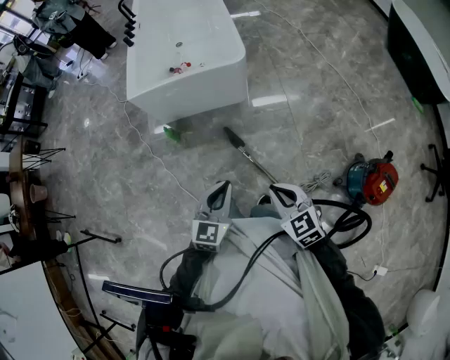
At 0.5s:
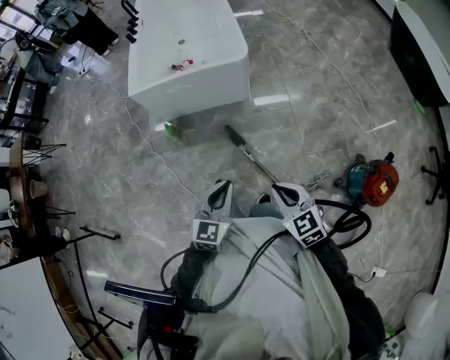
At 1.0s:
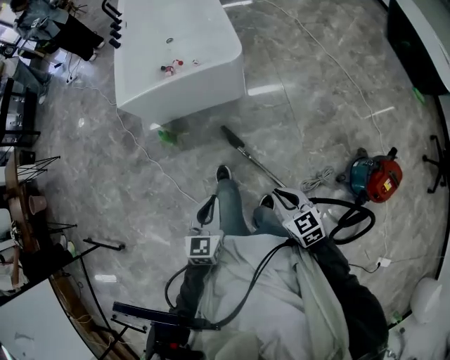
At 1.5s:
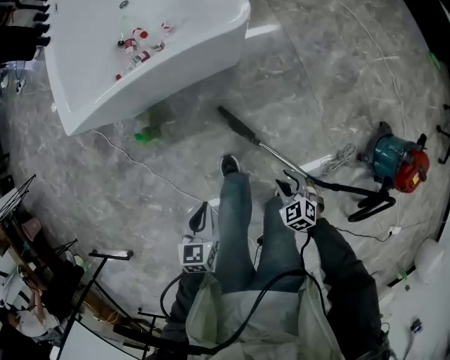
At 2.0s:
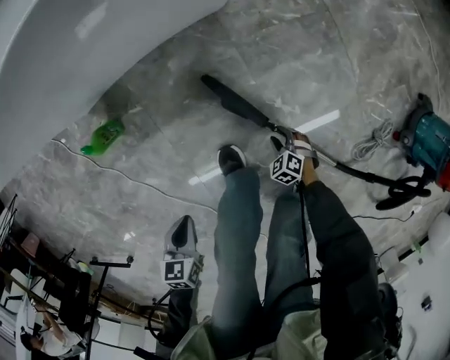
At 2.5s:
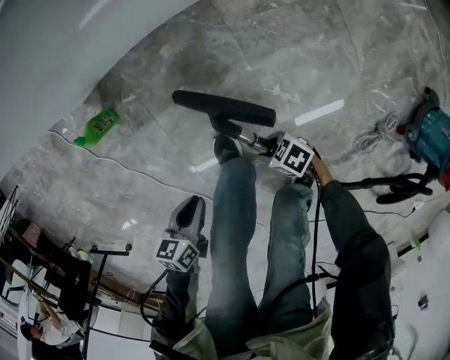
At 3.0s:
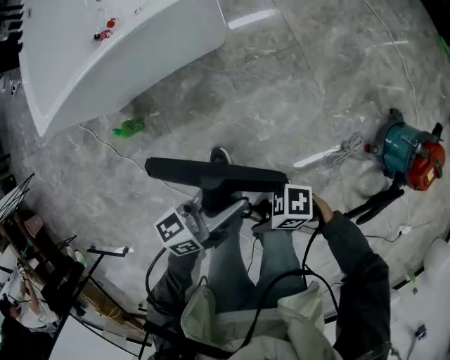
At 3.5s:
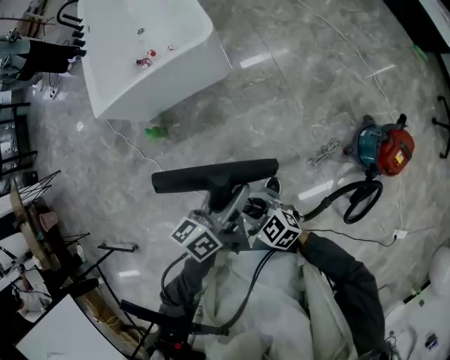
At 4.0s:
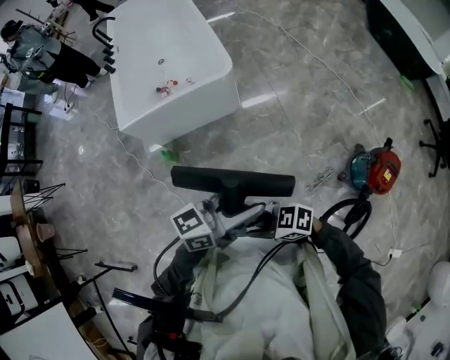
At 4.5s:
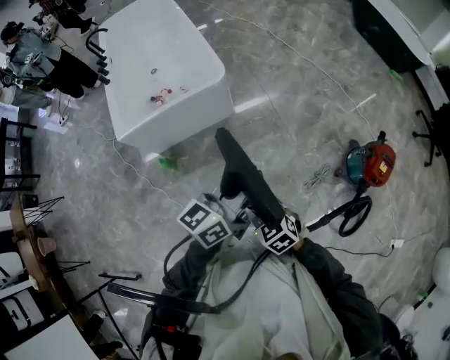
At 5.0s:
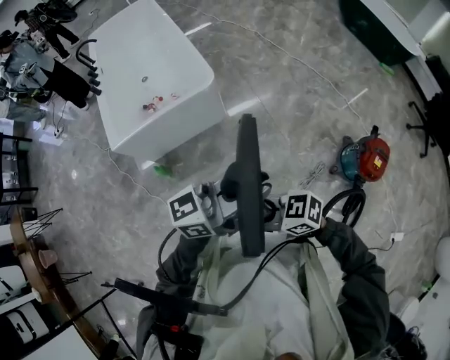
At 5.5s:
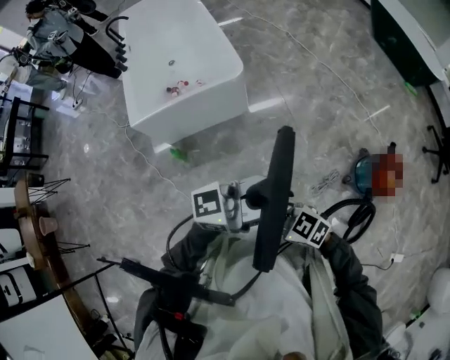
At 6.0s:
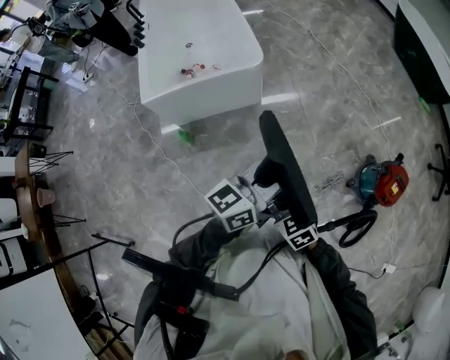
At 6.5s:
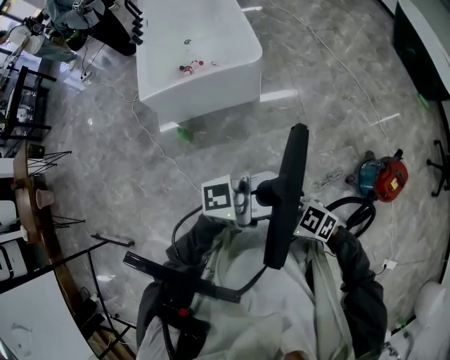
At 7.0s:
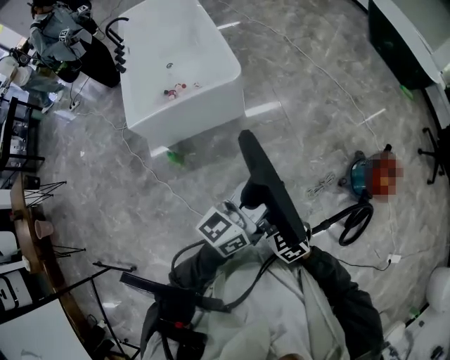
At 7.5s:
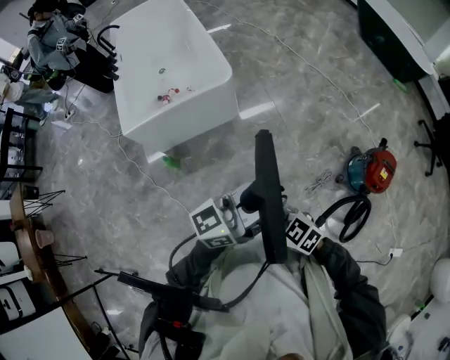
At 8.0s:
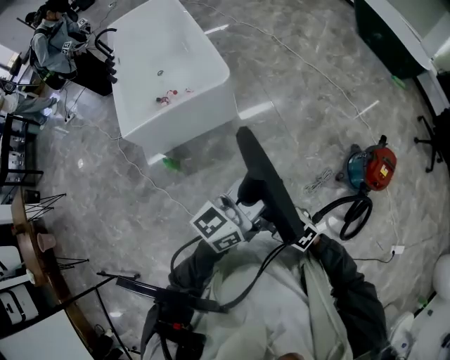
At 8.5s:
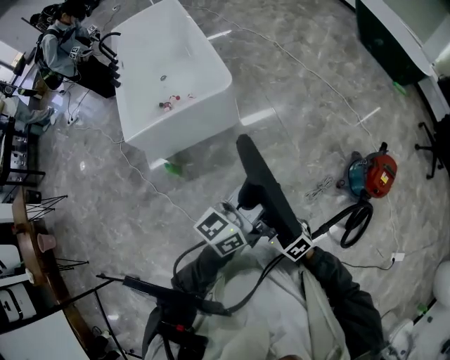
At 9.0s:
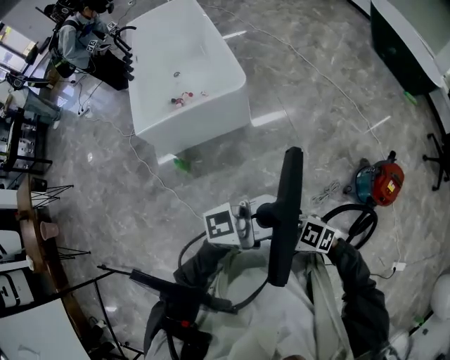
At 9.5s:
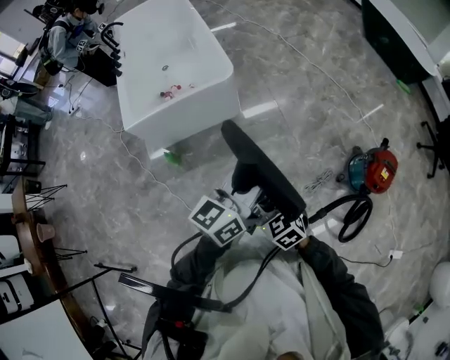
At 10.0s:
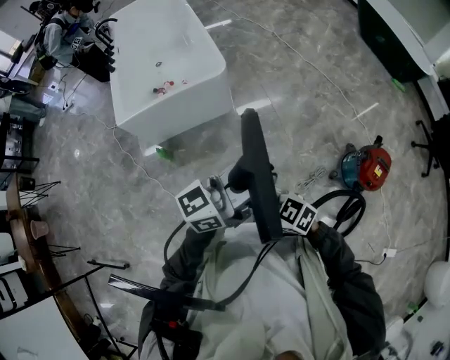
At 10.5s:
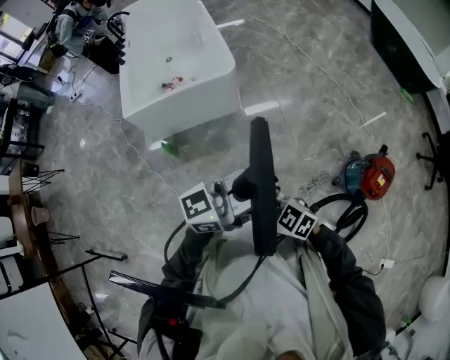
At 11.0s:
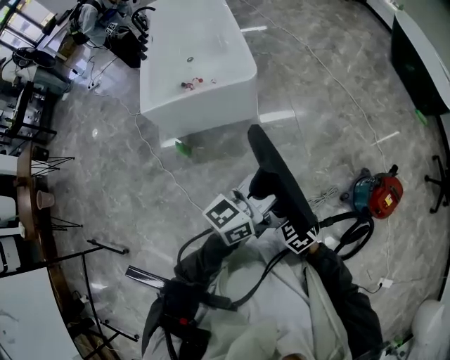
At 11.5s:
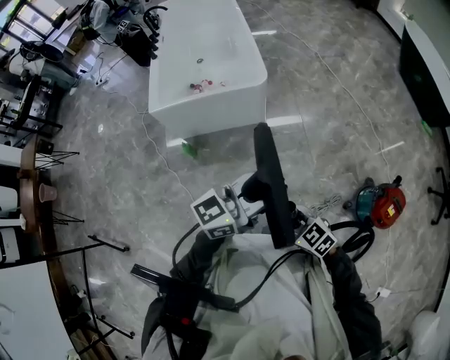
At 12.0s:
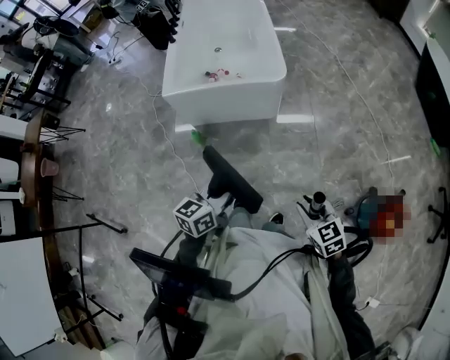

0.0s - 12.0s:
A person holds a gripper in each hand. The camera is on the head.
0.0s - 2.0s: Both grippers travel together downward, some 70 cm. The right gripper points its fingers about 40 degrees further downward, and opens. The left gripper tips its fingers downward by approximately 40 degrees.
2.0s - 4.0s: The two grippers go about 70 cm upward. The right gripper points its fingers approximately 50 degrees further upward. The left gripper tips its fingers upward by about 60 degrees, and opens its fingers.
4.0s - 6.0s: The right gripper moves some 10 cm, and turns by about 50 degrees; the left gripper closes up.
10.0s - 12.0s: The left gripper ends up some 25 cm from where it was, and points its fingers approximately 30 degrees further downward. The right gripper moves approximately 10 cm, and rotates about 20 degrees.

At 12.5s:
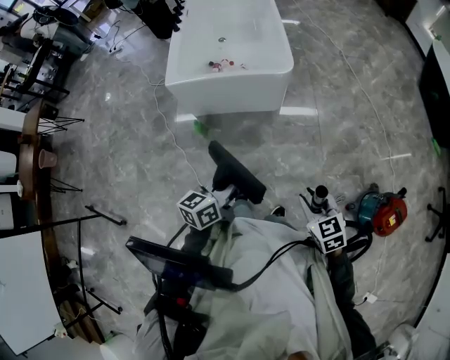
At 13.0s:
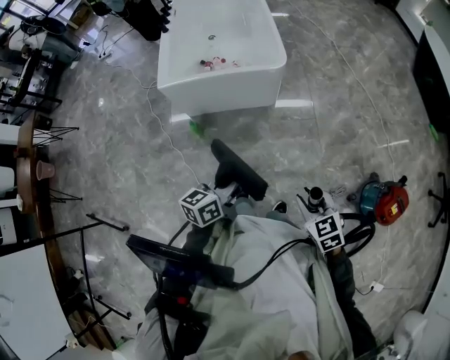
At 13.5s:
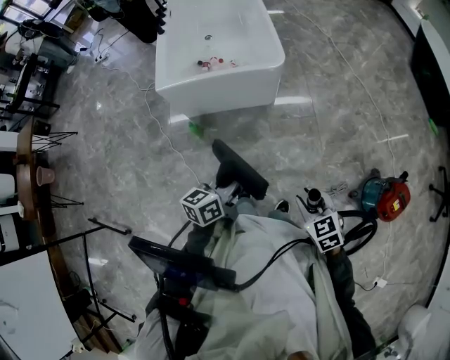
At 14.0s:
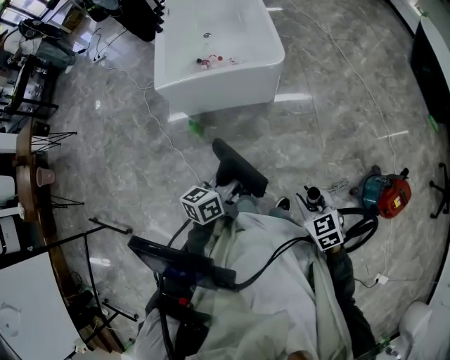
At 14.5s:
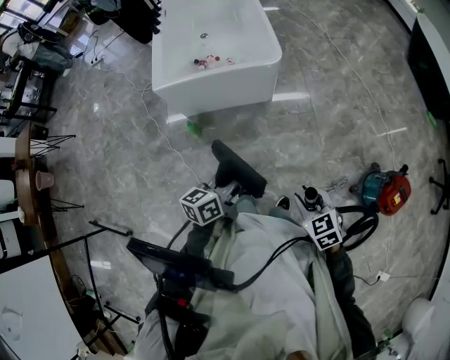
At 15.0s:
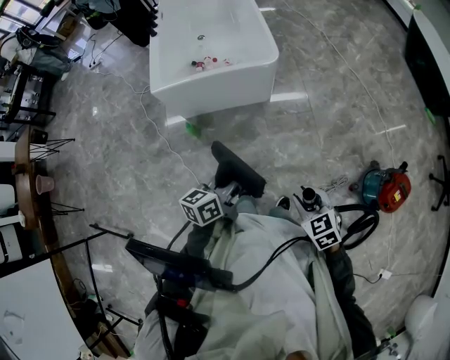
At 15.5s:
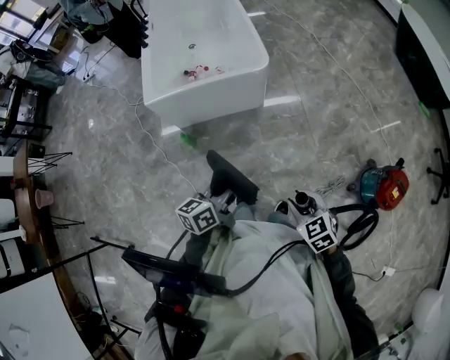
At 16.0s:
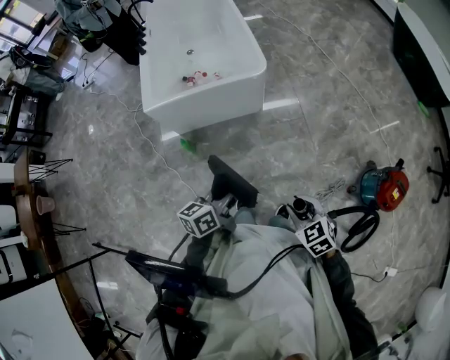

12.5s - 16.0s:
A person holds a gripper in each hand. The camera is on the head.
12.5s - 14.5s: There are only small adjustments of the grippers.
14.5s - 16.0s: Both grippers stay put.

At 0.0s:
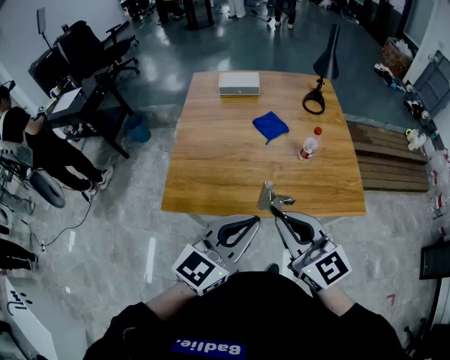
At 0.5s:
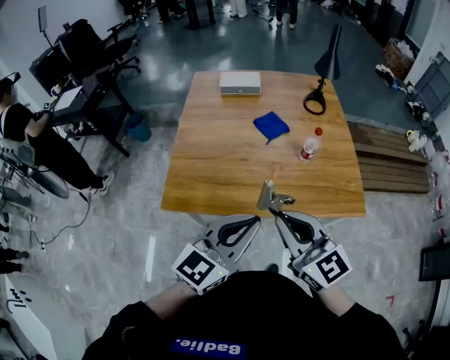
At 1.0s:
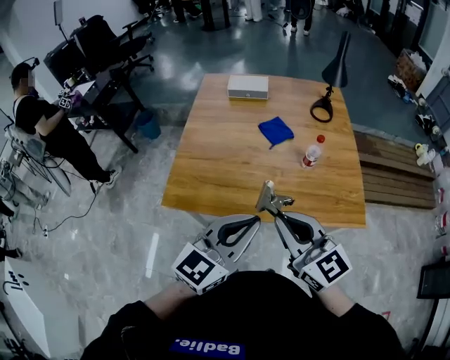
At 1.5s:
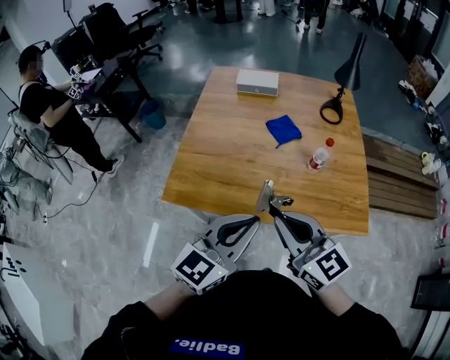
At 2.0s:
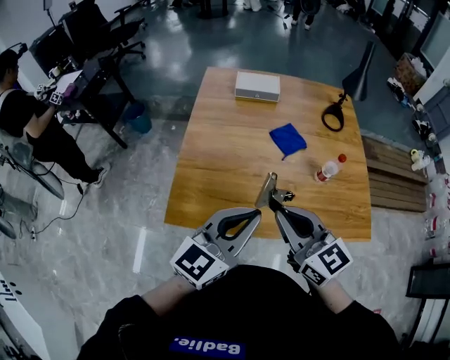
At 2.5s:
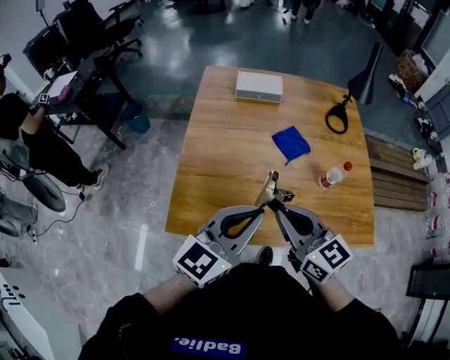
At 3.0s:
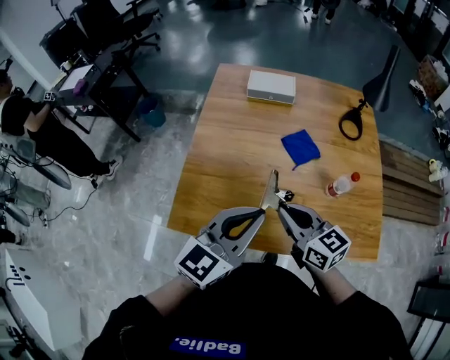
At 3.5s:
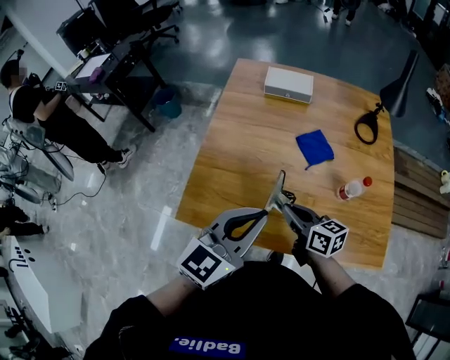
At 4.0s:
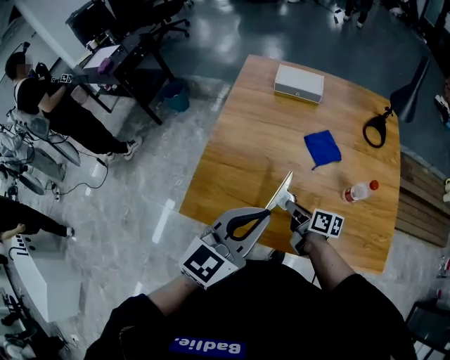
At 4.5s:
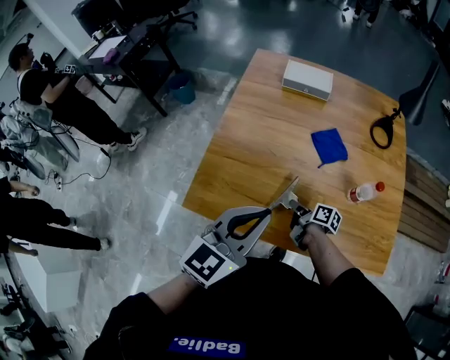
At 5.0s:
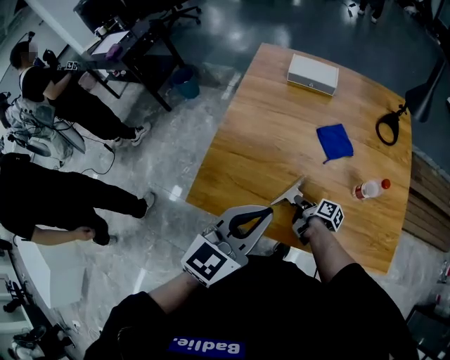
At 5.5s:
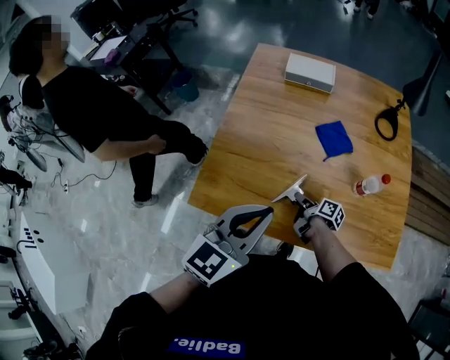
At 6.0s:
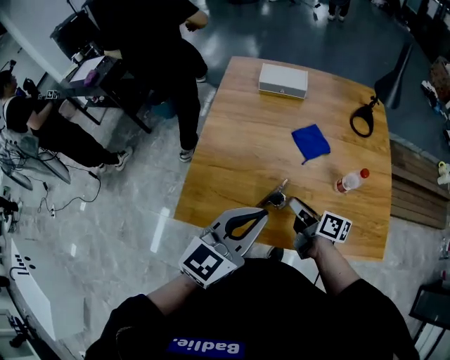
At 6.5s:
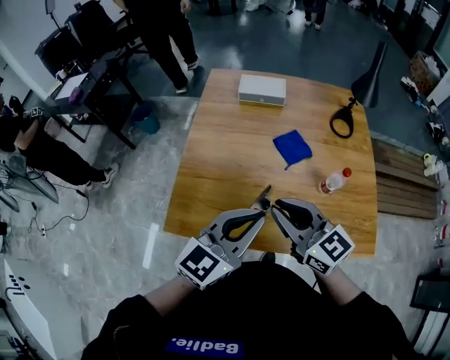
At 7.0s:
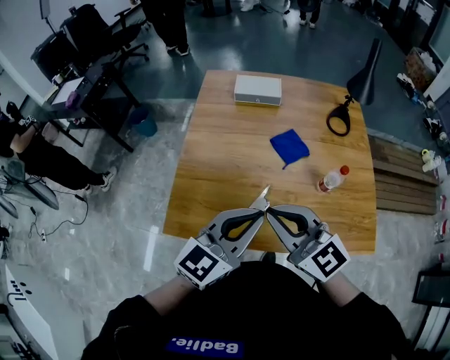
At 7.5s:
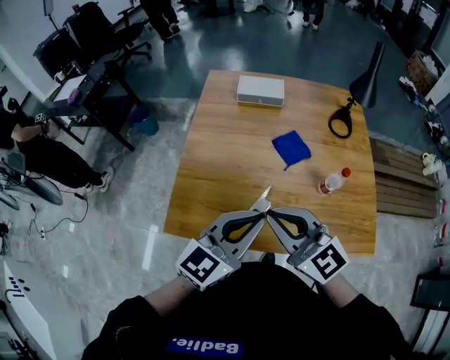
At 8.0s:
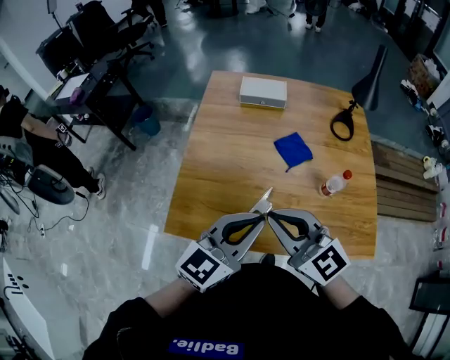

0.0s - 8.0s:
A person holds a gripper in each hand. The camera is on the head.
0.0s - 2.0s: Both grippers move forward and to the left, about 15 cm.
2.0s - 4.0s: The right gripper travels downward and forward by approximately 30 cm, and twists approximately 60 degrees clockwise, seen from behind; the left gripper moves forward, approximately 5 cm.
4.0s - 6.0s: The right gripper travels upward by some 5 cm, and opens up.
6.0s - 8.0s: The right gripper is displaced upward by about 20 cm, rolls counterclockwise, seen from behind, by about 70 degrees, and closes up.

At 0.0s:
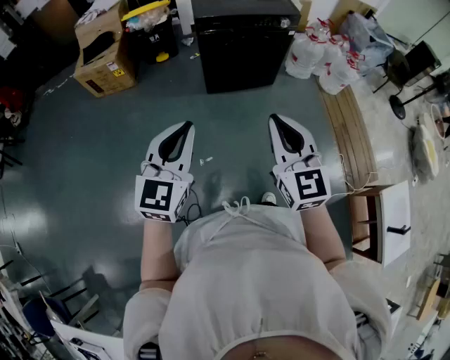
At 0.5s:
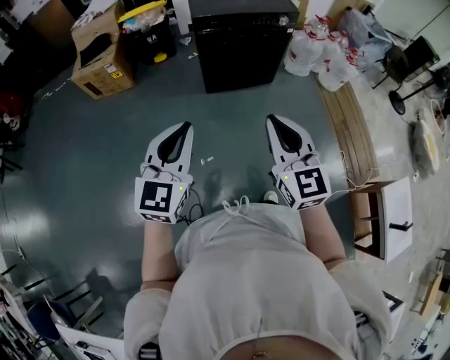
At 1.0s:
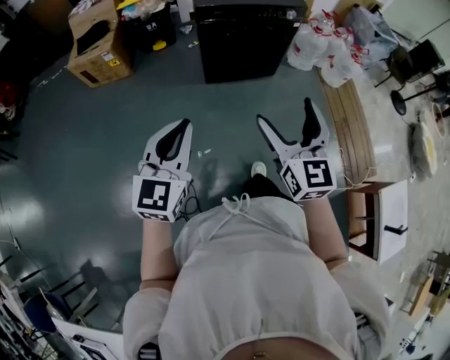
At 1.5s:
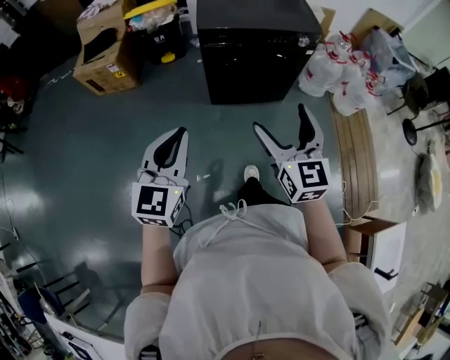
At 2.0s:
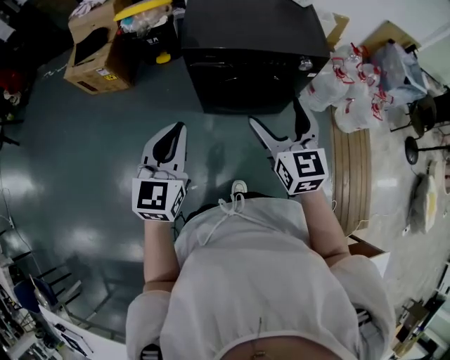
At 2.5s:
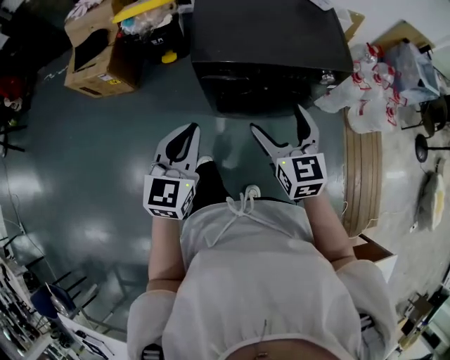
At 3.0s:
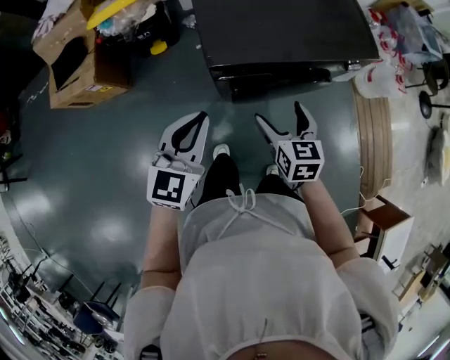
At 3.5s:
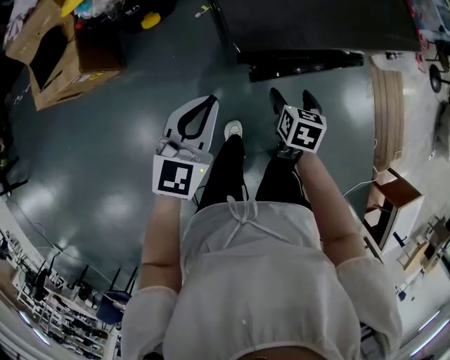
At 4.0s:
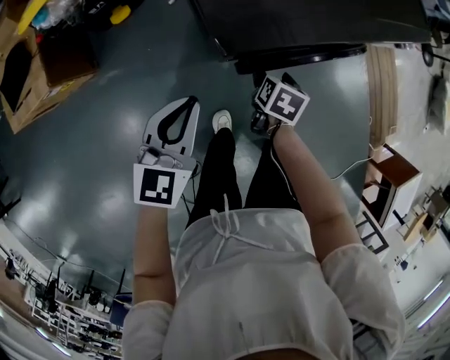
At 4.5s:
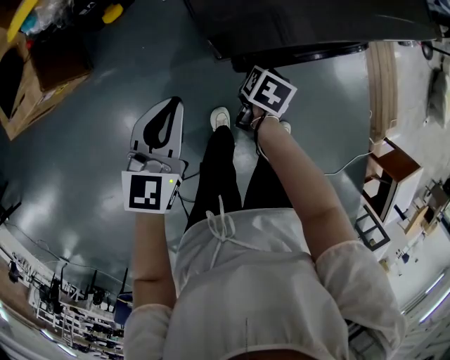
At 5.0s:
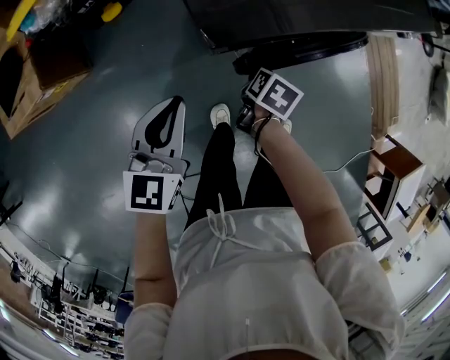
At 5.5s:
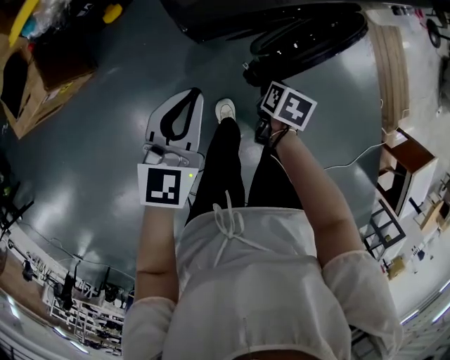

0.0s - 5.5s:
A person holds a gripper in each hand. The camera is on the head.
0.0s - 2.0s: Both grippers travel together forward, some 40 cm. The right gripper opens.
2.0s - 3.5s: The right gripper shifts roughly 35 cm downward, and points its fingers some 40 degrees further downward, while the left gripper ends up roughly 40 cm from where it was, and swivels approximately 30 degrees.
3.5s - 5.5s: The left gripper moves downward and to the right, roughly 10 cm, while the right gripper is displaced downward, backward and to the right by roughly 15 cm, changes its angle by about 30 degrees, and closes.
